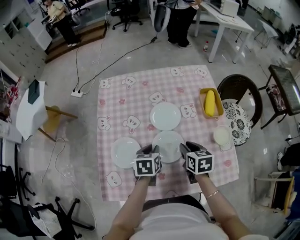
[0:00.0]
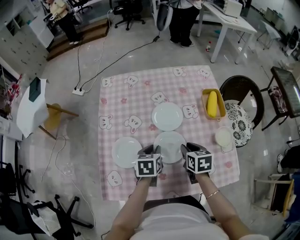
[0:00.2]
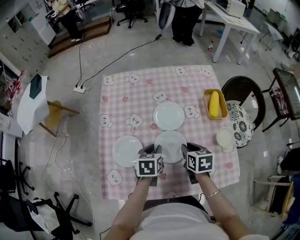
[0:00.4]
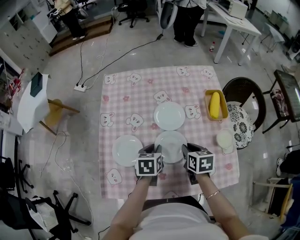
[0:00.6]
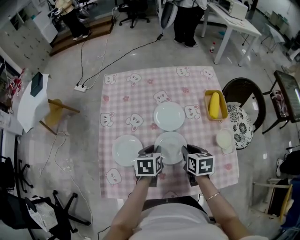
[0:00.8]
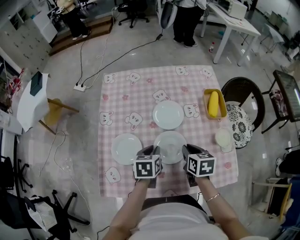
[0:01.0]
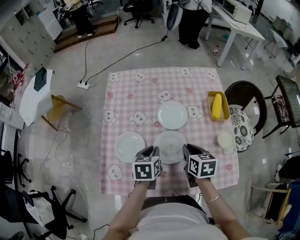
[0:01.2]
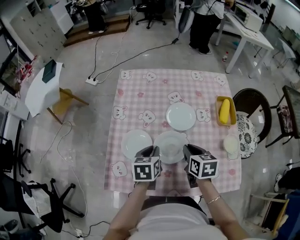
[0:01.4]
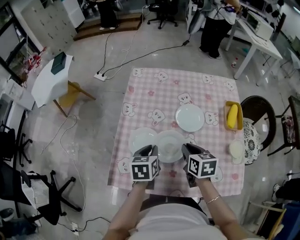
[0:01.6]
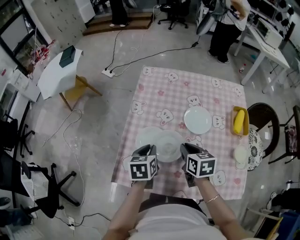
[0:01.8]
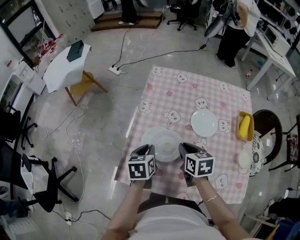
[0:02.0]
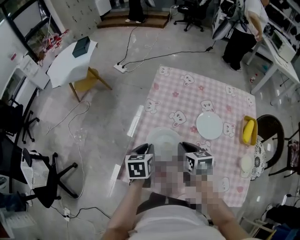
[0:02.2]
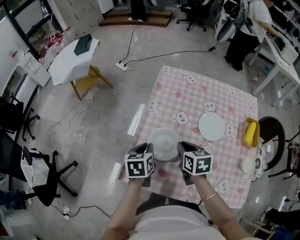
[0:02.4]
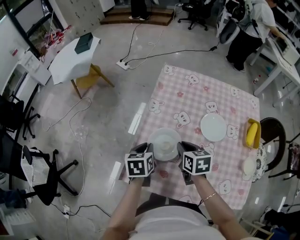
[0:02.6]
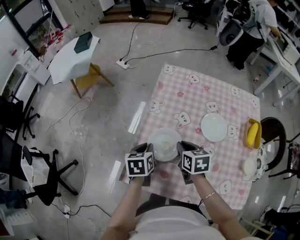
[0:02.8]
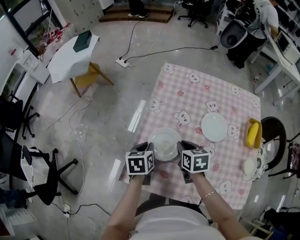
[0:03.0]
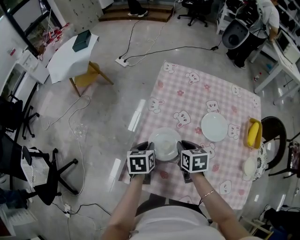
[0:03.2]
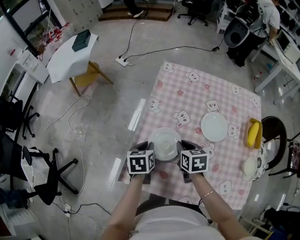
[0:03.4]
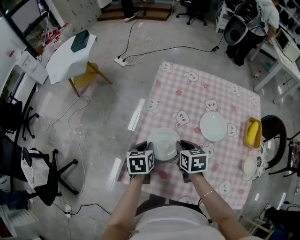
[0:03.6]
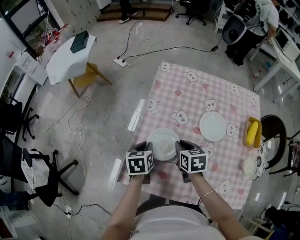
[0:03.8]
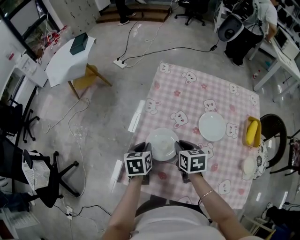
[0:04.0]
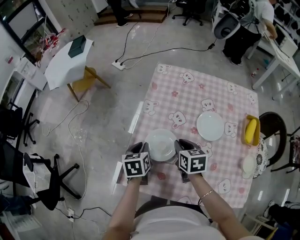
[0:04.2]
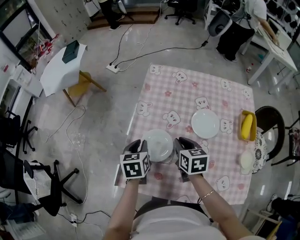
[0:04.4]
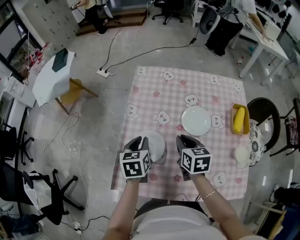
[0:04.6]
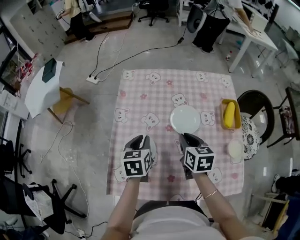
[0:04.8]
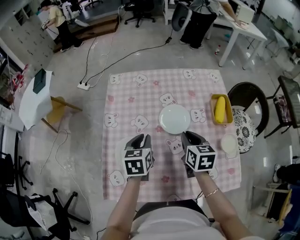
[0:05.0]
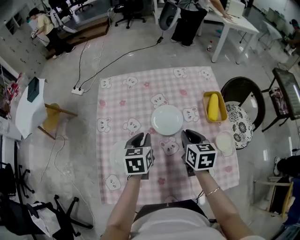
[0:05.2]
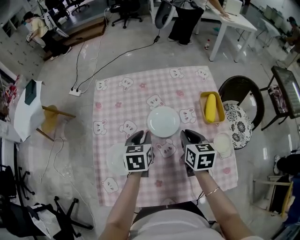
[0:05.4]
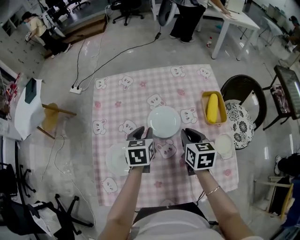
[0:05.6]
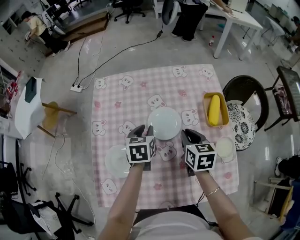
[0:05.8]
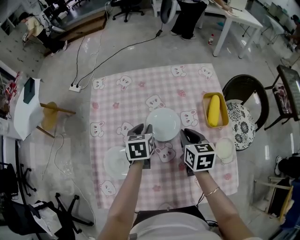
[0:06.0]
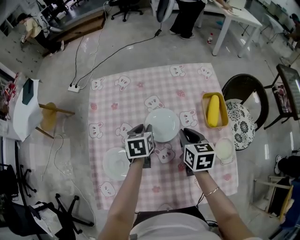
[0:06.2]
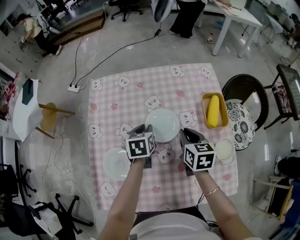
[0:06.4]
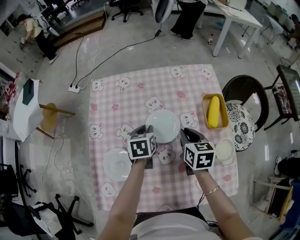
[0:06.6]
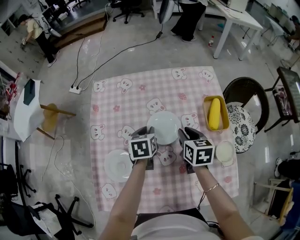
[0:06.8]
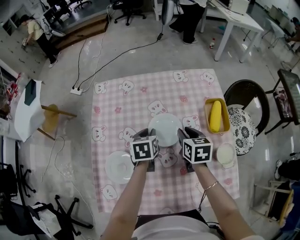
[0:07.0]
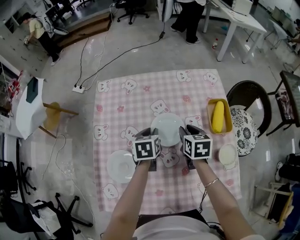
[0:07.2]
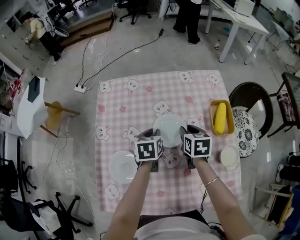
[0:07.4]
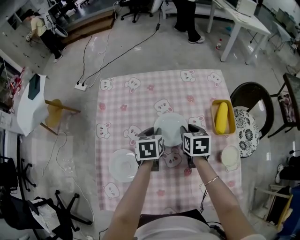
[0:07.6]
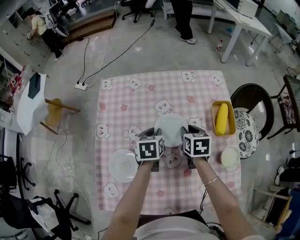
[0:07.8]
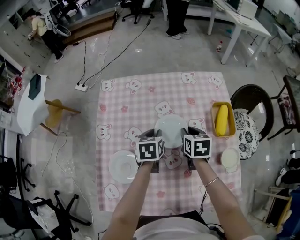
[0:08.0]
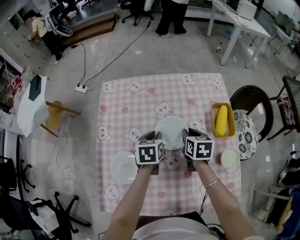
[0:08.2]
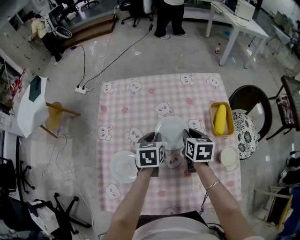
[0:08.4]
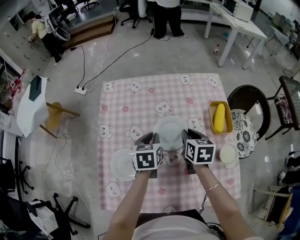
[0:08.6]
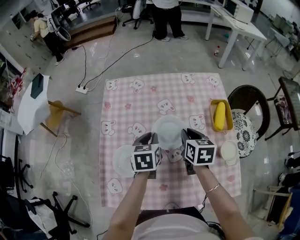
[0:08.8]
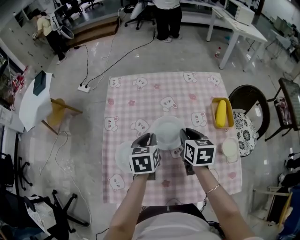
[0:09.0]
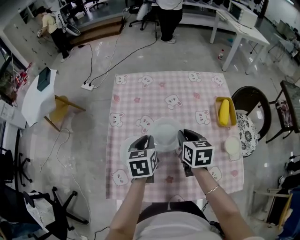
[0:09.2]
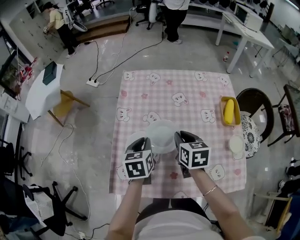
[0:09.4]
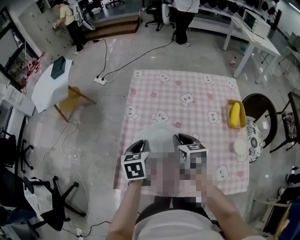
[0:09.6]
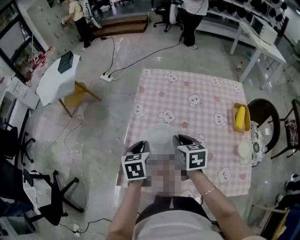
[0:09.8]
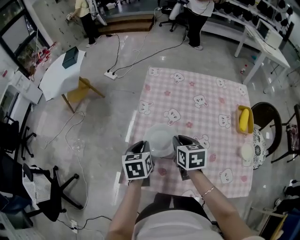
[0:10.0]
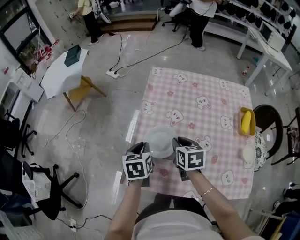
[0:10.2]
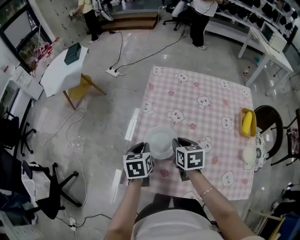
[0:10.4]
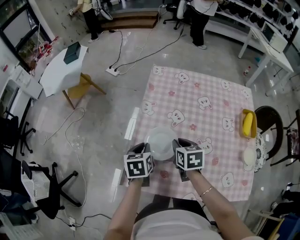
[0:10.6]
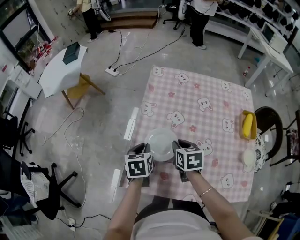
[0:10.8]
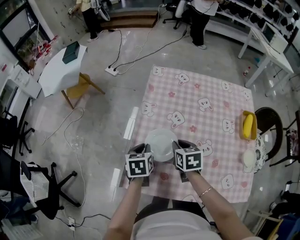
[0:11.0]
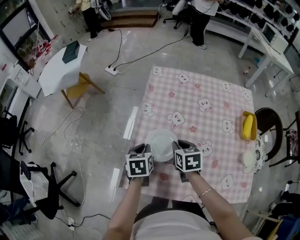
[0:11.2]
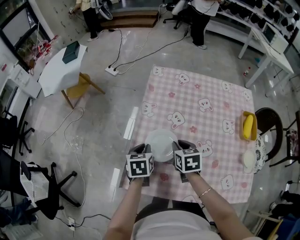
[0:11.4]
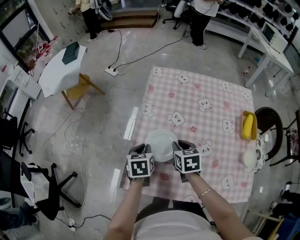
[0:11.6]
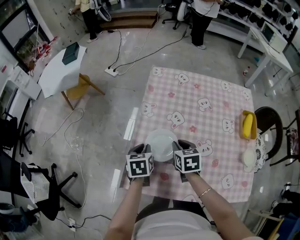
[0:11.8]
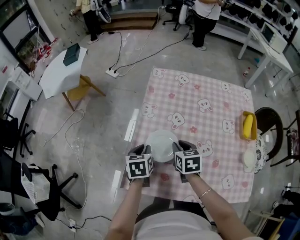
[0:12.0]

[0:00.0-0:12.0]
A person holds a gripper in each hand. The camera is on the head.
0:00.0 to 0:01.6: The left gripper travels to the left and upward by about 10 cm; the right gripper moves to the left, approximately 10 cm.
0:01.6 to 0:03.0: The right gripper travels to the left and forward by about 15 cm; the left gripper travels to the left by about 15 cm.
0:03.0 to 0:04.4: The grippers make only small movements.
0:04.4 to 0:06.0: The left gripper goes roughly 30 cm to the right and forward, and changes its angle by about 20 degrees. The right gripper heads to the right, covering about 25 cm, and rotates approximately 20 degrees.
0:06.0 to 0:07.6: The right gripper heads forward, covering roughly 5 cm.
0:07.6 to 0:09.0: The left gripper goes approximately 10 cm backward, upward and to the left. The right gripper heads backward and upward, covering roughly 10 cm.
0:09.0 to 0:10.4: Both grippers move to the left, roughly 20 cm. The right gripper changes its angle by about 20 degrees.
0:10.4 to 0:12.0: There are only small adjustments of the grippers.

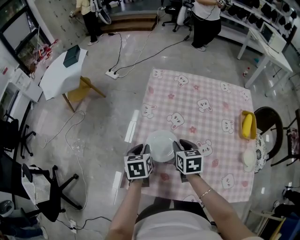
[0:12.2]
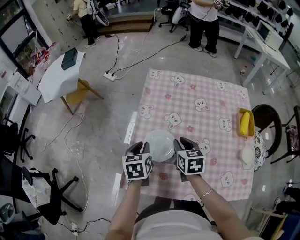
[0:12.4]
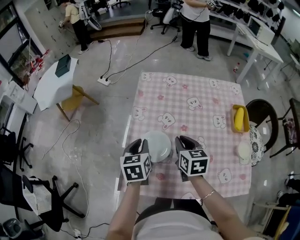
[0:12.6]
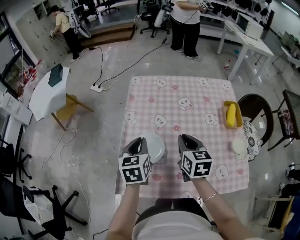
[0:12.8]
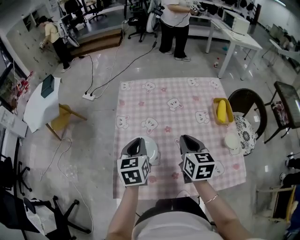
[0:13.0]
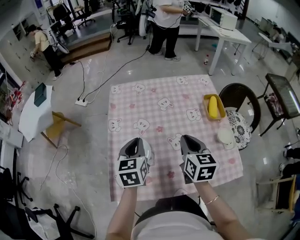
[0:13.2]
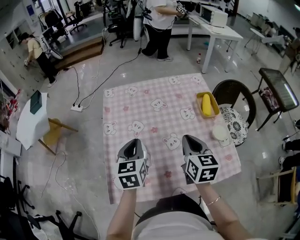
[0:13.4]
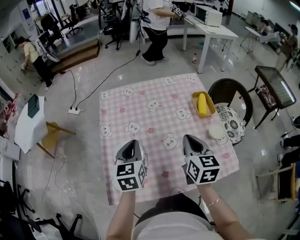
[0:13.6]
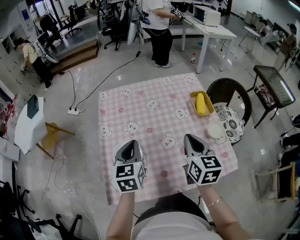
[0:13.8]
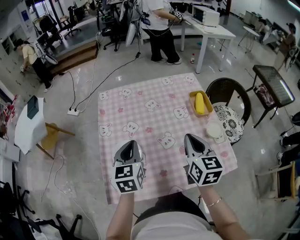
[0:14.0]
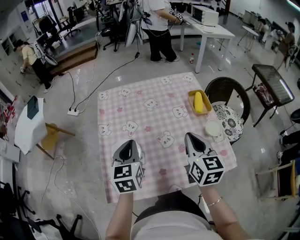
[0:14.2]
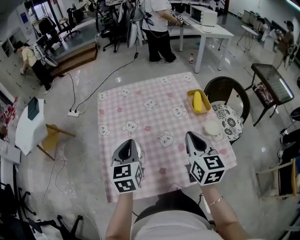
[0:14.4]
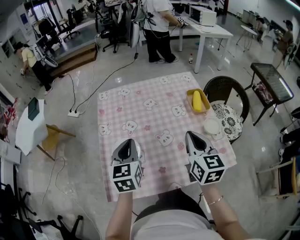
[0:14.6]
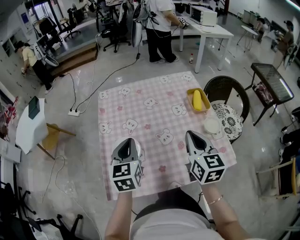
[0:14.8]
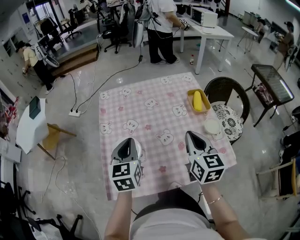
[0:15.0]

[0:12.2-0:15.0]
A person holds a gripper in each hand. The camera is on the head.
0:12.2 to 0:13.6: The right gripper moves to the right, upward and backward, some 25 cm, rotates about 30 degrees, and closes, while the left gripper shifts about 20 cm to the right and upward, and turns by approximately 30 degrees.
0:13.6 to 0:15.0: The right gripper heads backward, covering approximately 5 cm, while the left gripper shifts by approximately 5 cm.

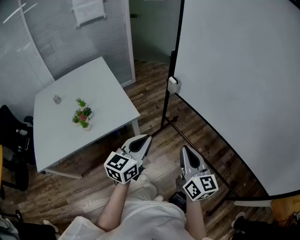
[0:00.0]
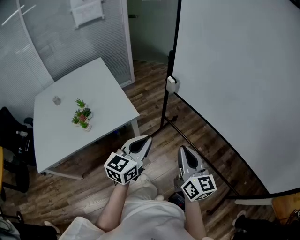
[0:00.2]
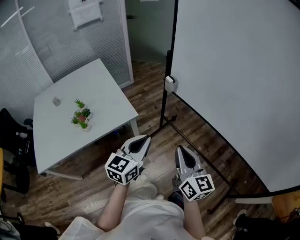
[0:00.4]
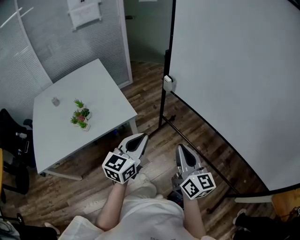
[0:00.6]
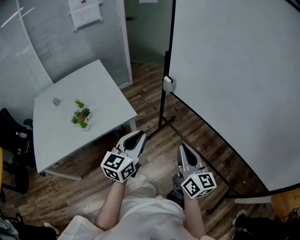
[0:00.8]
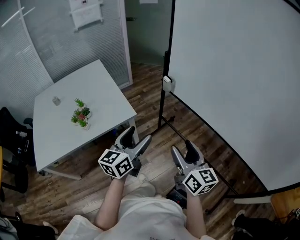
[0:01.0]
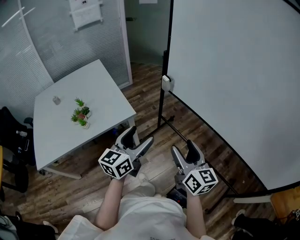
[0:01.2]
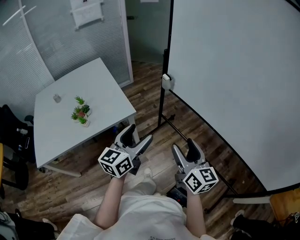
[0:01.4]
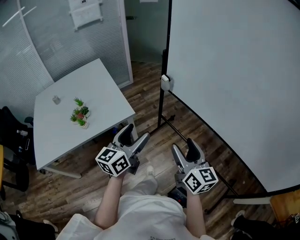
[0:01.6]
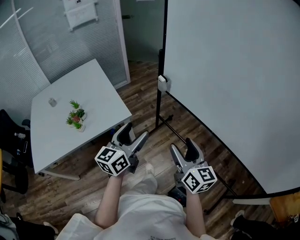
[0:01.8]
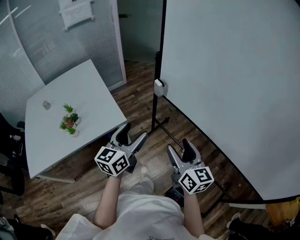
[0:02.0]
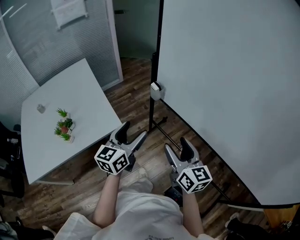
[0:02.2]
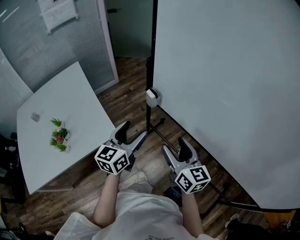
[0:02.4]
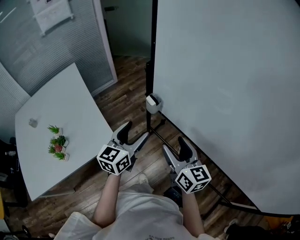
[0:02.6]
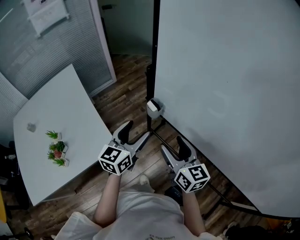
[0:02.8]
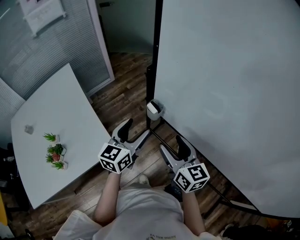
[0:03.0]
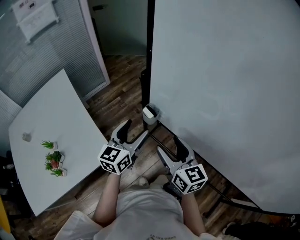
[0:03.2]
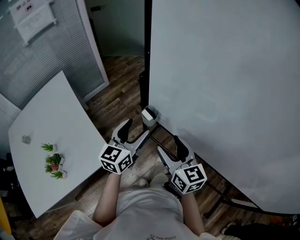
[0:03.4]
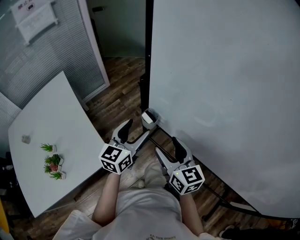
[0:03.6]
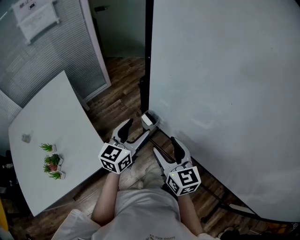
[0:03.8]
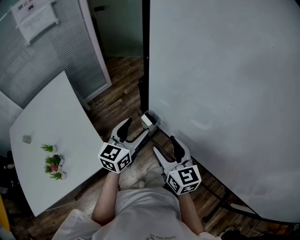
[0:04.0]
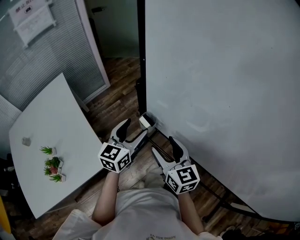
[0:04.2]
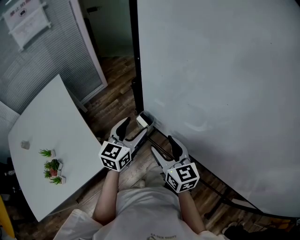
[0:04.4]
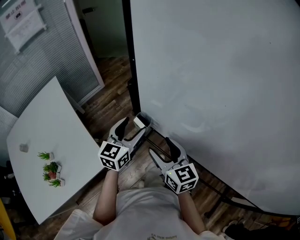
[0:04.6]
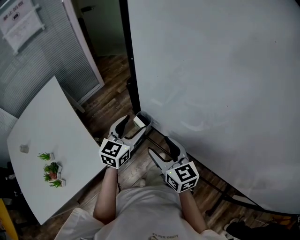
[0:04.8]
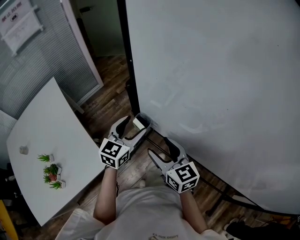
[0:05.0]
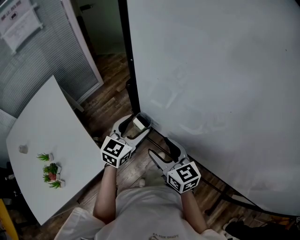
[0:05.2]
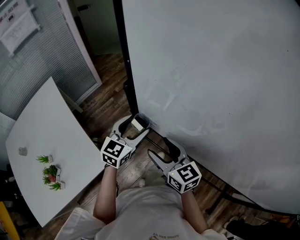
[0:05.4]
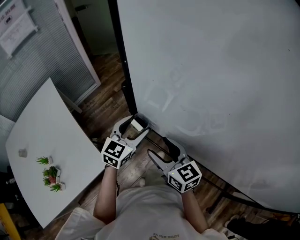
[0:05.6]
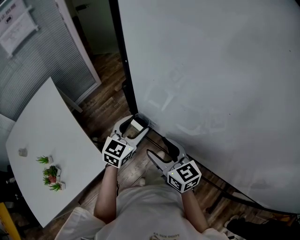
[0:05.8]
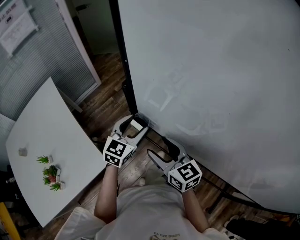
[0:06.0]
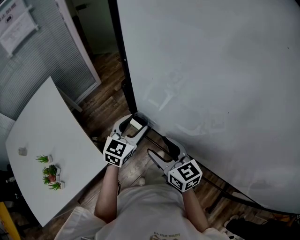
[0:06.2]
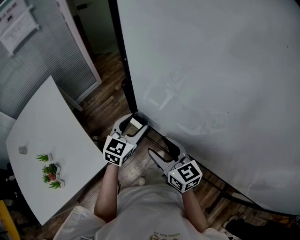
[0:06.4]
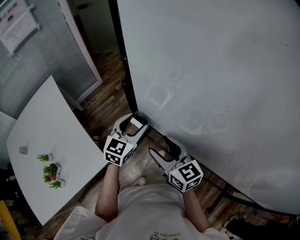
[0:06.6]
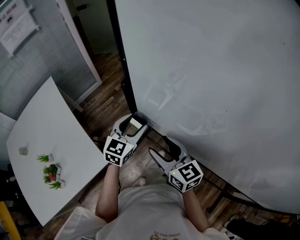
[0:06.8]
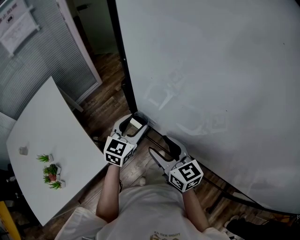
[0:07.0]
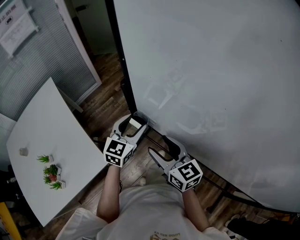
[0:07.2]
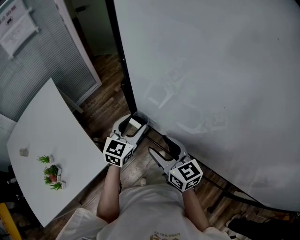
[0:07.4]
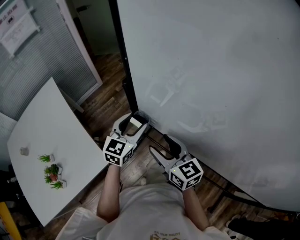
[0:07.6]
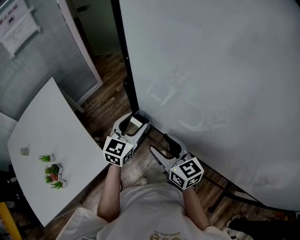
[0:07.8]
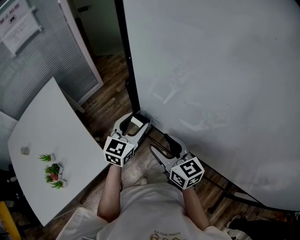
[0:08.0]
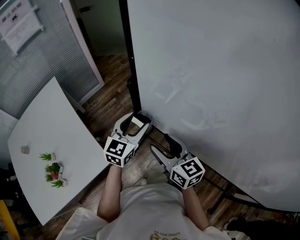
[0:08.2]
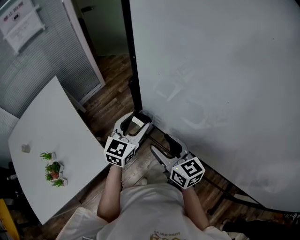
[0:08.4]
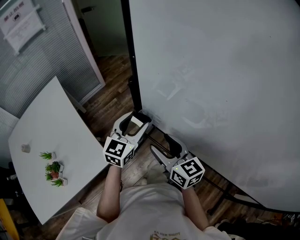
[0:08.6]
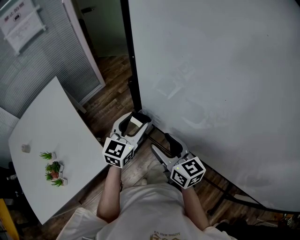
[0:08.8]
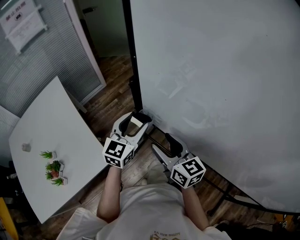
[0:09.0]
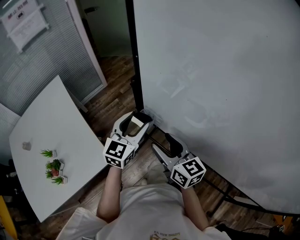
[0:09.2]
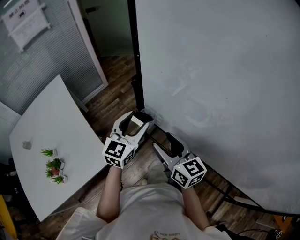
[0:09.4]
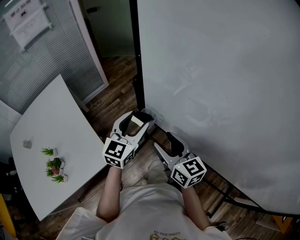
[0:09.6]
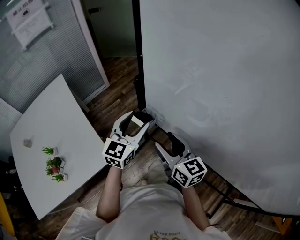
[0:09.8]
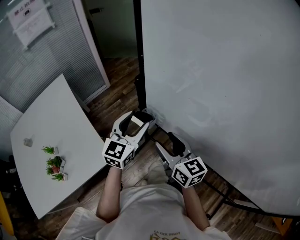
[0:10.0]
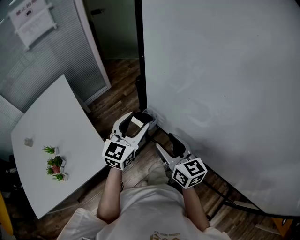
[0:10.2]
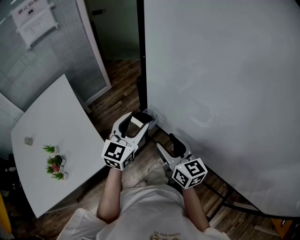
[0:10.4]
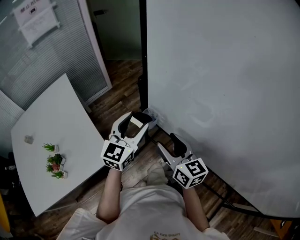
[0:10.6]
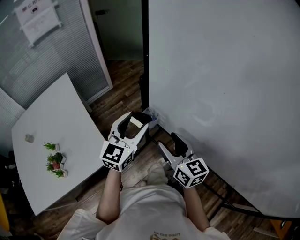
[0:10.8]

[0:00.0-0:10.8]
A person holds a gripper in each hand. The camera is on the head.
0:00.0 to 0:01.6: The right gripper opens. Meanwhile the left gripper opens its fingers.
0:01.6 to 0:03.0: The grippers both shift forward by some 35 cm.
0:03.0 to 0:04.6: The left gripper moves forward, approximately 10 cm. The right gripper is displaced forward by some 5 cm.
0:04.6 to 0:09.2: The grippers move only a little.
0:09.2 to 0:10.8: The left gripper ends up some 5 cm from where it was.
